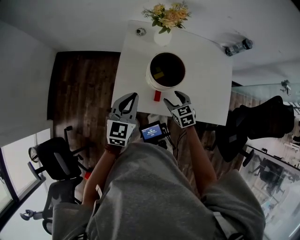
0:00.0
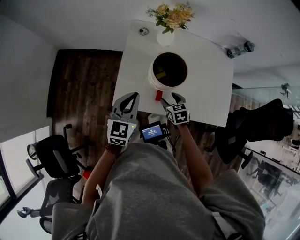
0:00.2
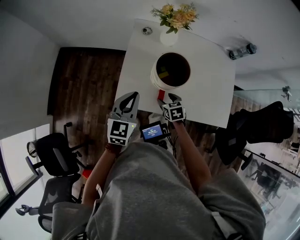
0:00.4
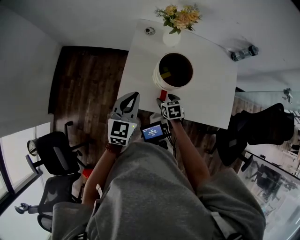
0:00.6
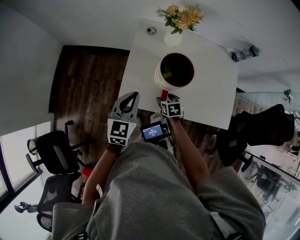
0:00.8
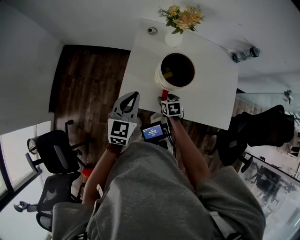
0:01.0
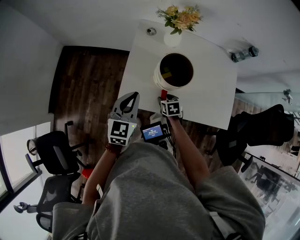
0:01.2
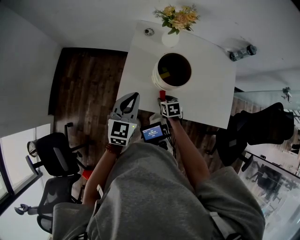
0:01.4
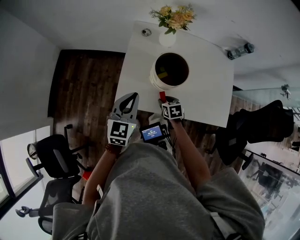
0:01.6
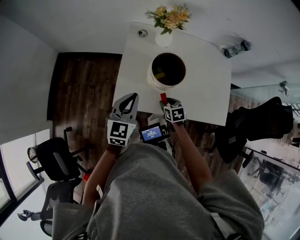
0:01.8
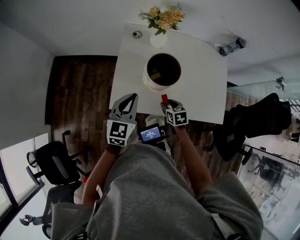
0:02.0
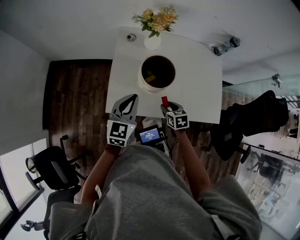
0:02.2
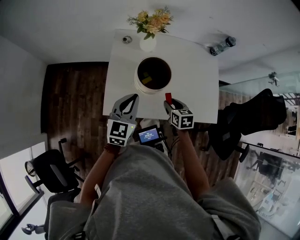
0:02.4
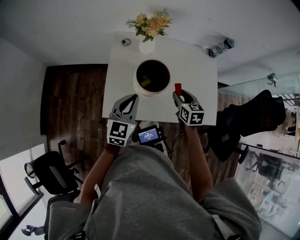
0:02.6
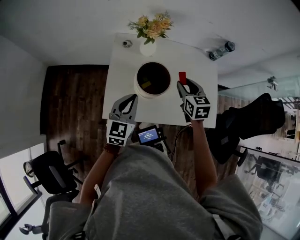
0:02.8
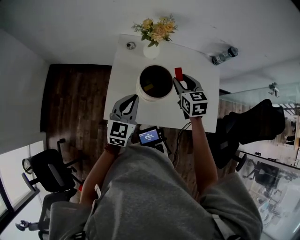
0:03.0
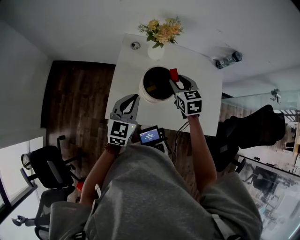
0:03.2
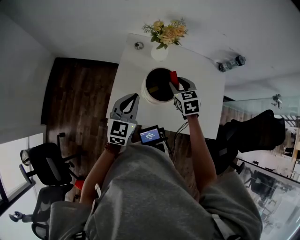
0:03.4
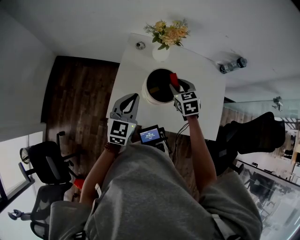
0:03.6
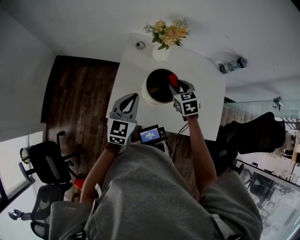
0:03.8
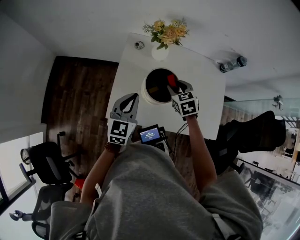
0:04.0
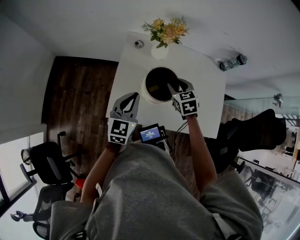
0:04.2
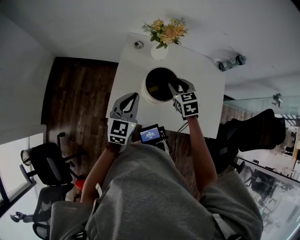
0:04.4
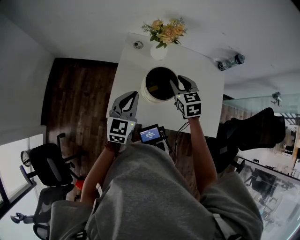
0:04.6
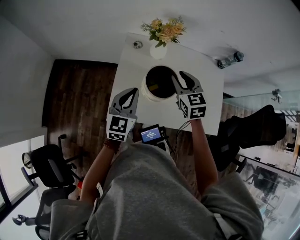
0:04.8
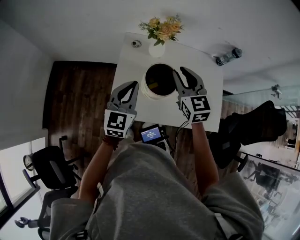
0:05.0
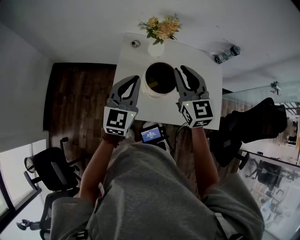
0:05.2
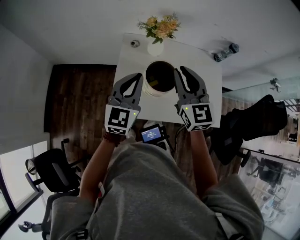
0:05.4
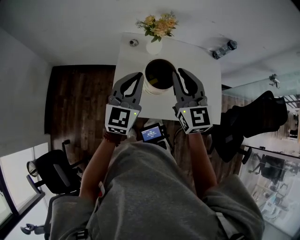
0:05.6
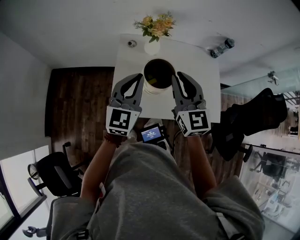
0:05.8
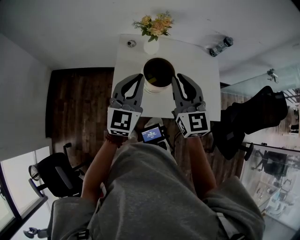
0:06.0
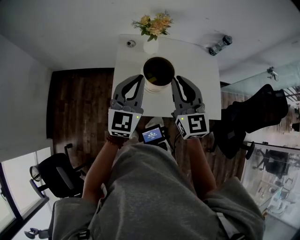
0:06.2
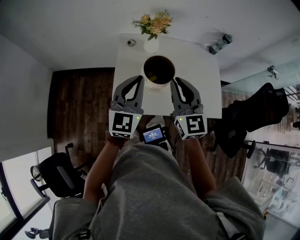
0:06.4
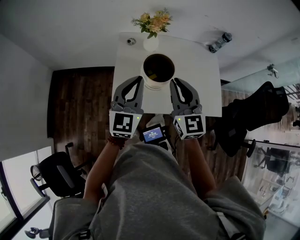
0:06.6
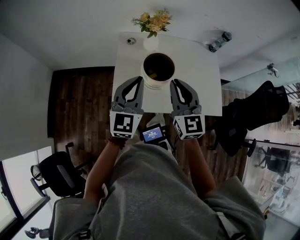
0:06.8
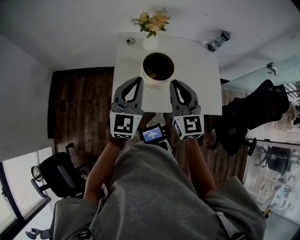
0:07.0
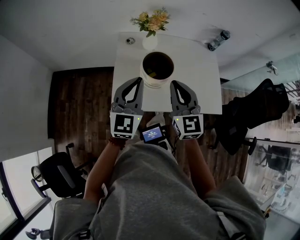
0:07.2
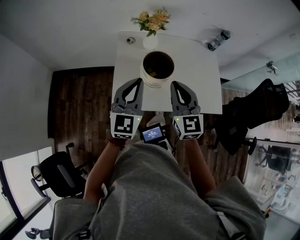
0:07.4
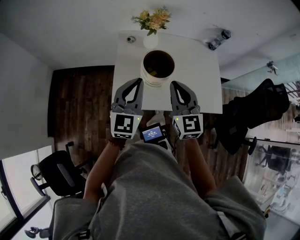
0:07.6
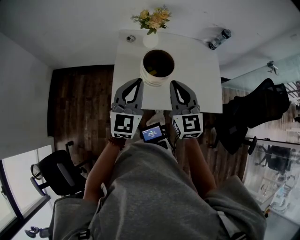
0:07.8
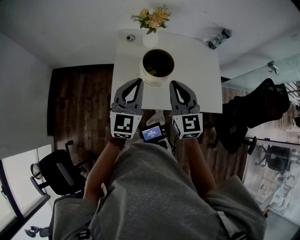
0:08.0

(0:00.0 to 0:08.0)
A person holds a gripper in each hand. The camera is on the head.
0:00.0 - 0:01.6: The right gripper shifts some 5 cm downward, swivels some 20 degrees, and closes its fingers.
0:01.6 - 0:03.2: The right gripper goes some 25 cm upward and forward, and changes its angle by roughly 30 degrees; the left gripper is displaced forward by some 5 cm.
0:03.2 - 0:04.8: The right gripper travels upward by approximately 5 cm.
0:04.8 - 0:06.4: The right gripper heads backward and upward, covering about 15 cm, and turns by roughly 20 degrees, while the left gripper travels upward by about 10 cm.
0:06.4 - 0:08.0: The grippers stay close to where they were, moving slightly.

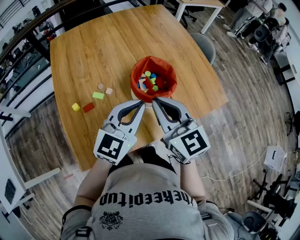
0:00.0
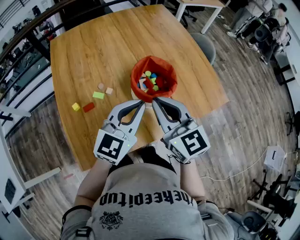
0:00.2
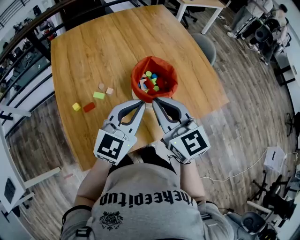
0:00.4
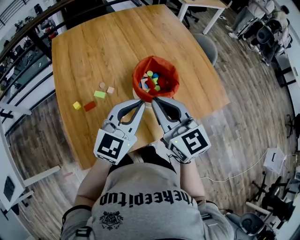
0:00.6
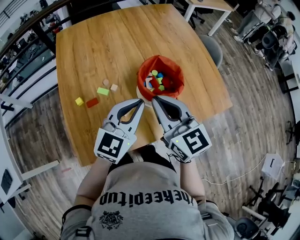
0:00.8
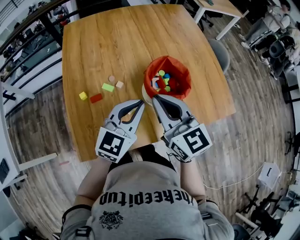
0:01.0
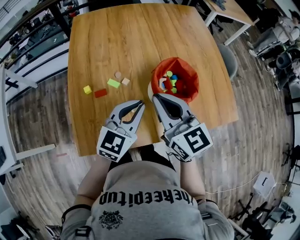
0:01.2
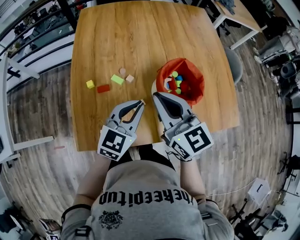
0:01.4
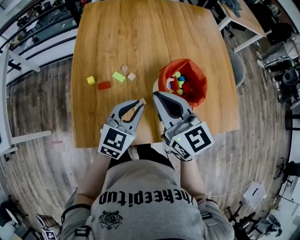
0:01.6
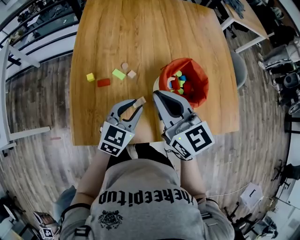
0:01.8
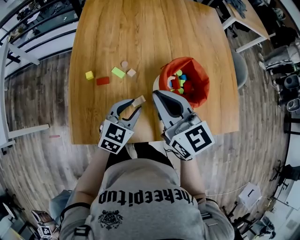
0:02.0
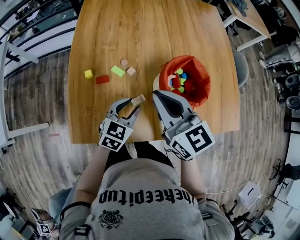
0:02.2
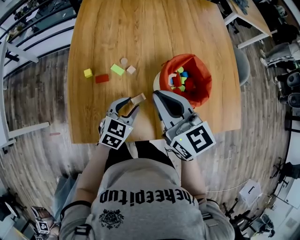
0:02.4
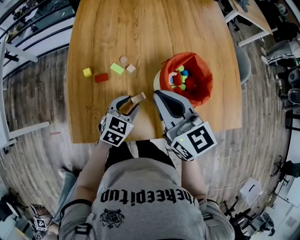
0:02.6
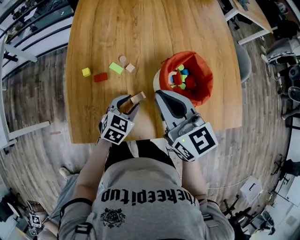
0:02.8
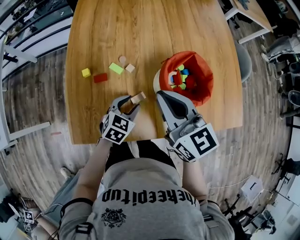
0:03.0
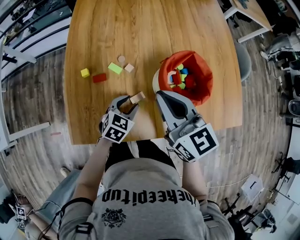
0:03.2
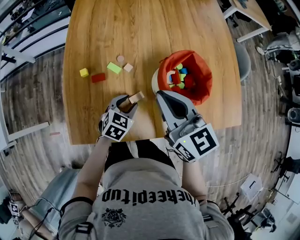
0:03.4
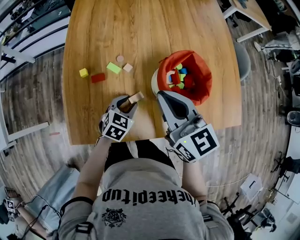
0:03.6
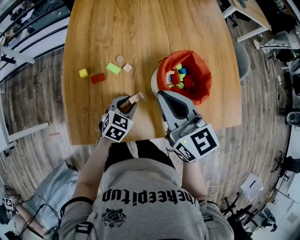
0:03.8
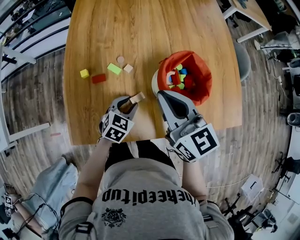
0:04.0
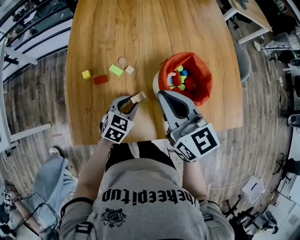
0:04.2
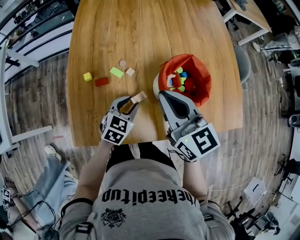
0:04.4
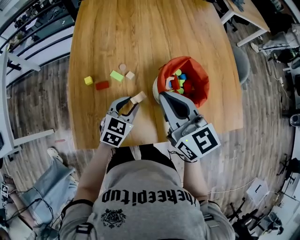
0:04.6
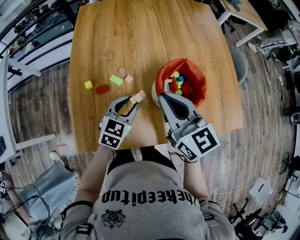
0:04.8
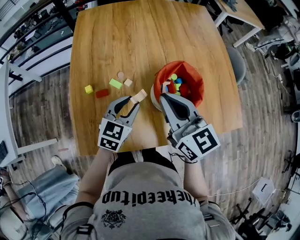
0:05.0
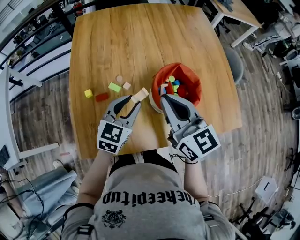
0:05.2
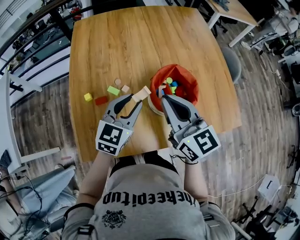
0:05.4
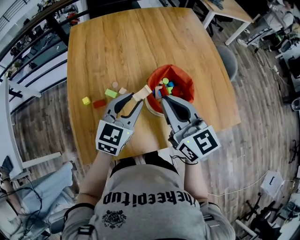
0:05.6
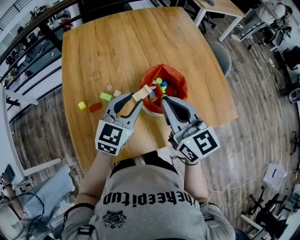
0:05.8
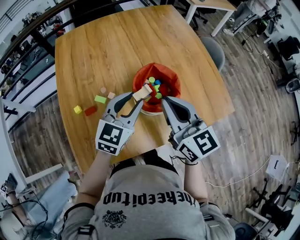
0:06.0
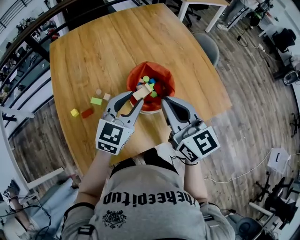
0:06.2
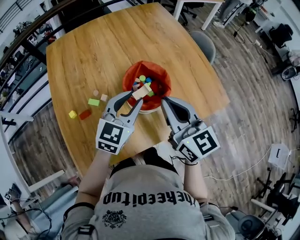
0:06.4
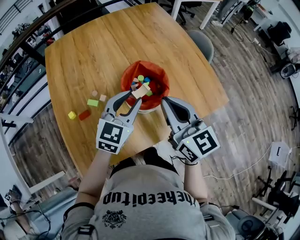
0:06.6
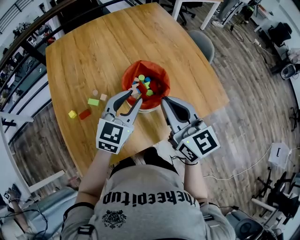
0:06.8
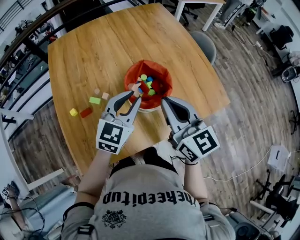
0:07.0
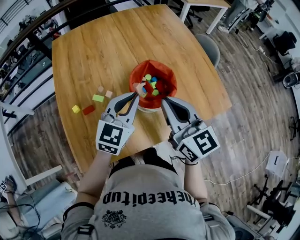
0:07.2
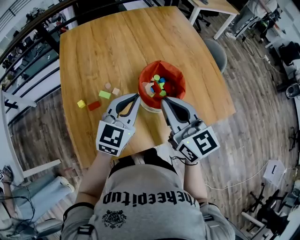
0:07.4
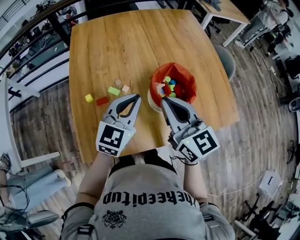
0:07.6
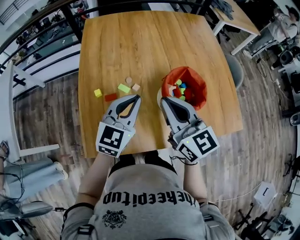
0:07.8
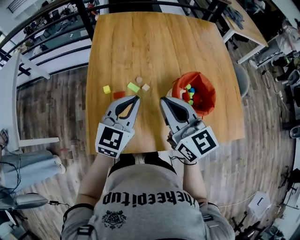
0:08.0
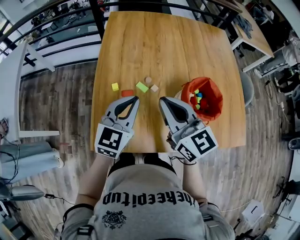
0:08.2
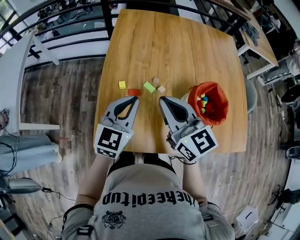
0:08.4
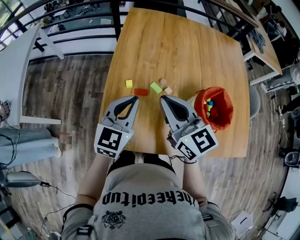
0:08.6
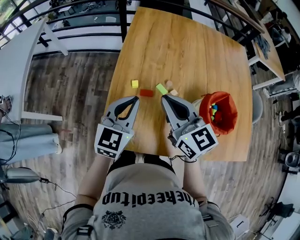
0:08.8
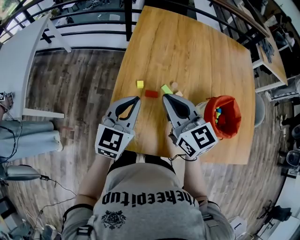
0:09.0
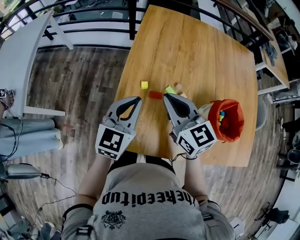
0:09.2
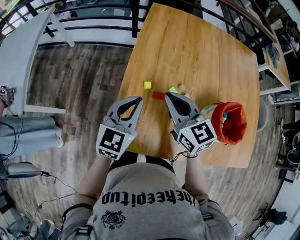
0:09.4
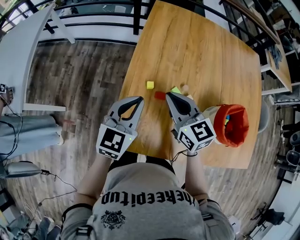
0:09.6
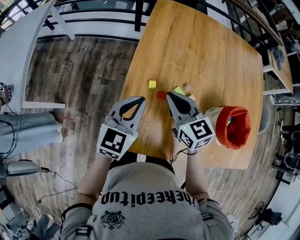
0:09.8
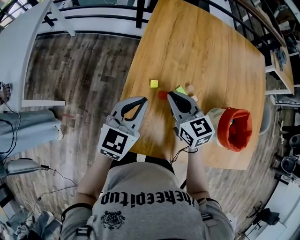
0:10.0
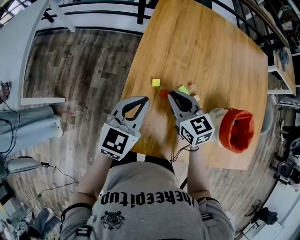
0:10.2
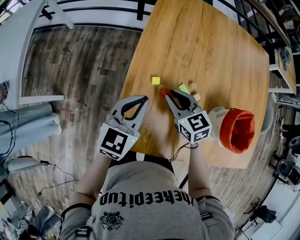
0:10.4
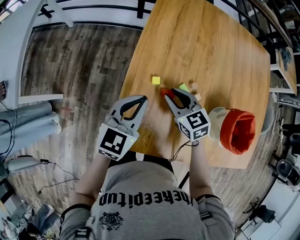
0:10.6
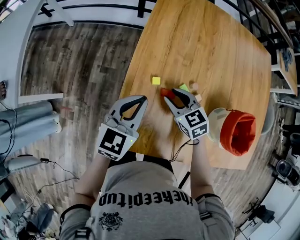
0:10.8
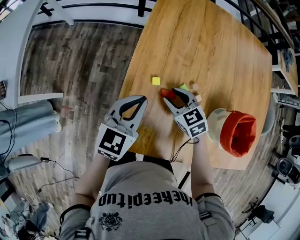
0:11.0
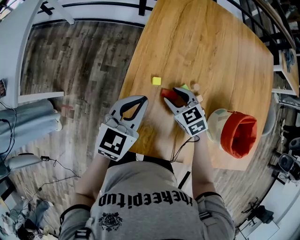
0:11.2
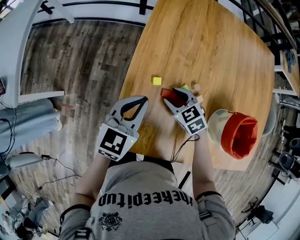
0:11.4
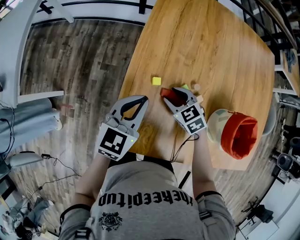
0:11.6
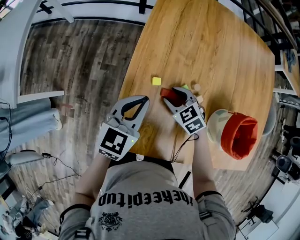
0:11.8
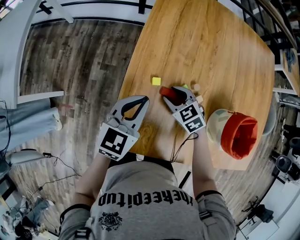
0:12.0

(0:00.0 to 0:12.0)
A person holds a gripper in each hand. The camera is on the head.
0:00.0 - 0:01.6: The left gripper shifts approximately 15 cm downward and to the left, and rotates some 20 degrees, while the right gripper travels to the left by some 10 cm, and swivels roughly 20 degrees.
0:01.6 - 0:03.0: The left gripper is displaced downward by approximately 15 cm, swivels roughly 20 degrees, and opens.
0:03.0 - 0:04.4: There are only small adjustments of the grippers.
0:04.4 - 0:06.0: The right gripper goes approximately 10 cm to the right. Meanwhile the left gripper is displaced upward and to the right by approximately 20 cm, and changes its angle by roughly 30 degrees.
0:06.0 - 0:07.6: The right gripper is displaced to the left by about 5 cm, while the left gripper ends up approximately 5 cm from where it was, and closes.
0:07.6 - 0:09.0: The grippers both shift to the left by some 20 cm. The right gripper swivels about 30 degrees. Meanwhile the left gripper changes its angle by roughly 30 degrees.
0:09.0 - 0:10.4: The right gripper shifts roughly 15 cm downward, and changes its angle by roughly 20 degrees, while the left gripper travels downward by about 5 cm.
0:10.4 - 0:12.0: The right gripper is displaced downward by about 10 cm, turns by approximately 20 degrees, and opens up.

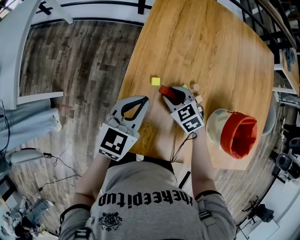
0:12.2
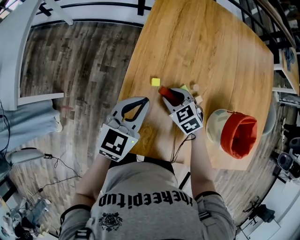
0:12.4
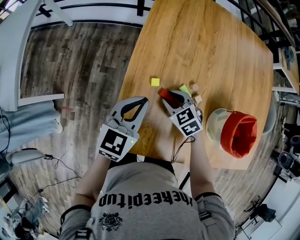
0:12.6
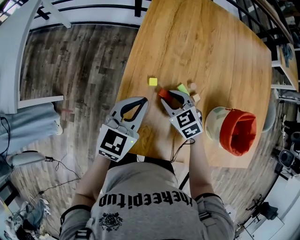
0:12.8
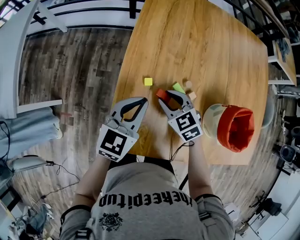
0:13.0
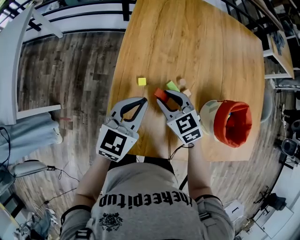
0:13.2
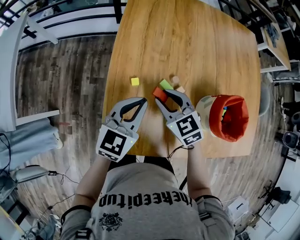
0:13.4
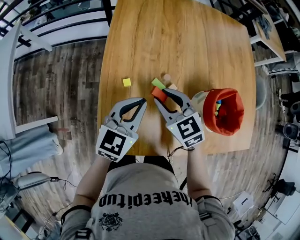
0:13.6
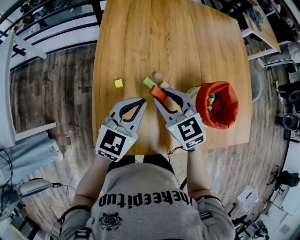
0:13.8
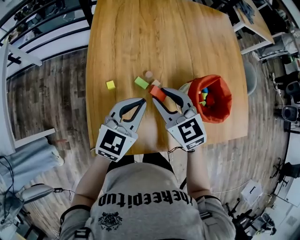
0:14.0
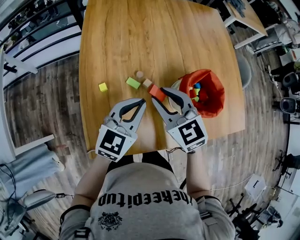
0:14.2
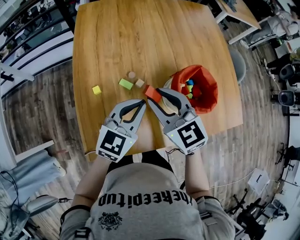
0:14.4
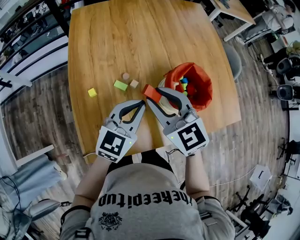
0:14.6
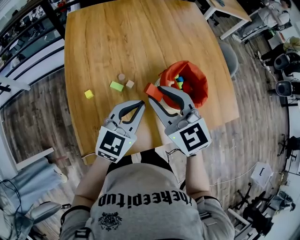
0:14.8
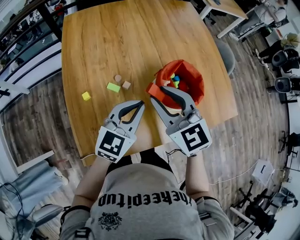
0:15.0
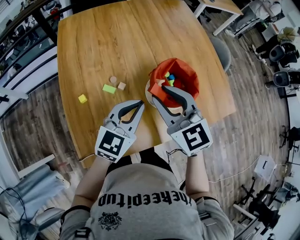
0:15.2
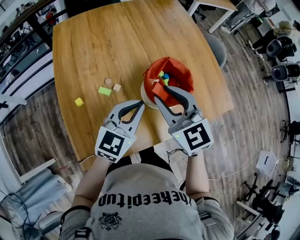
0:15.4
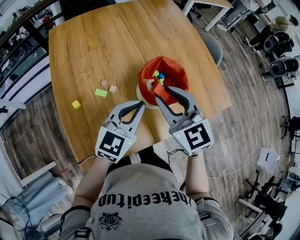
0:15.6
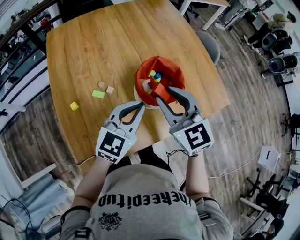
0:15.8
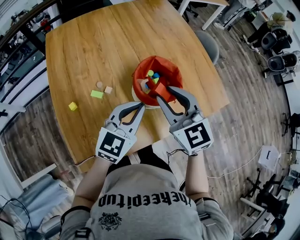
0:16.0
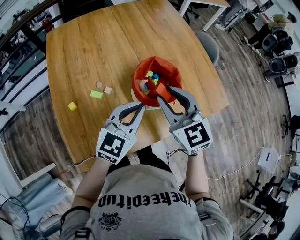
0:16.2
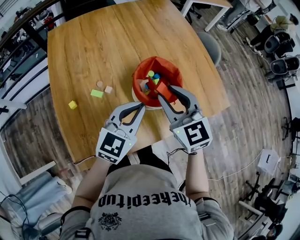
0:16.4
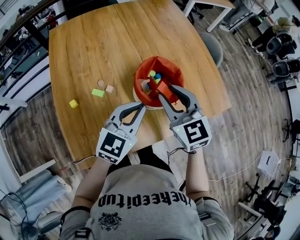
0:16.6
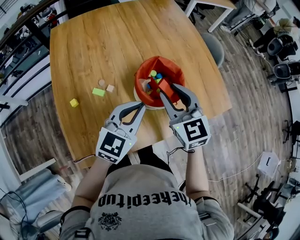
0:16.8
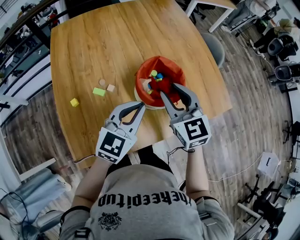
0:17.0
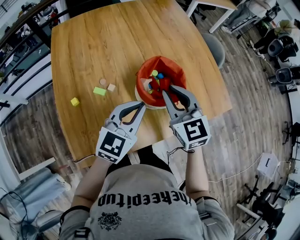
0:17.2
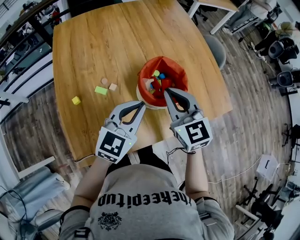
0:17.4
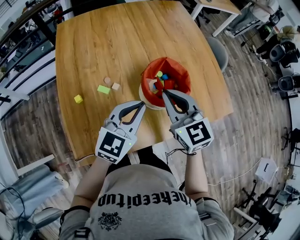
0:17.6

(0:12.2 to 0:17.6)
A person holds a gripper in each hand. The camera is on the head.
0:12.2 - 0:13.6: The right gripper goes some 15 cm upward, and rotates approximately 20 degrees. The left gripper moves to the right, roughly 10 cm.
0:13.6 - 0:15.0: The left gripper goes about 15 cm to the right; the right gripper moves to the right and upward, about 20 cm, and swivels approximately 20 degrees.
0:15.0 - 0:16.2: Both grippers move to the right, about 10 cm.
0:16.2 - 0:17.6: The right gripper closes its fingers.
